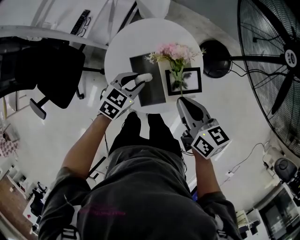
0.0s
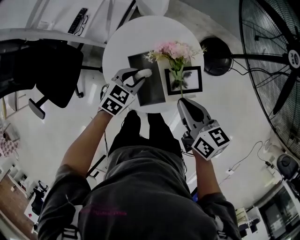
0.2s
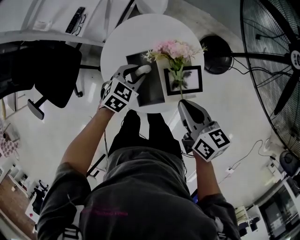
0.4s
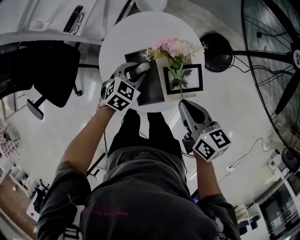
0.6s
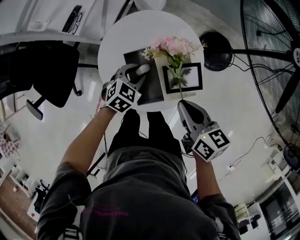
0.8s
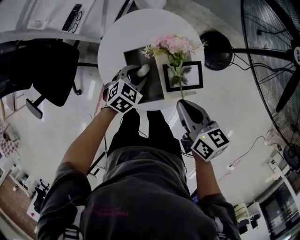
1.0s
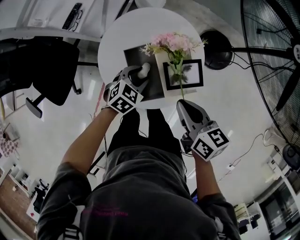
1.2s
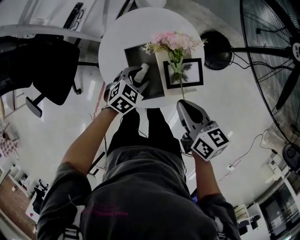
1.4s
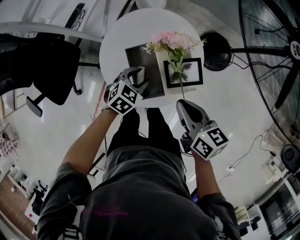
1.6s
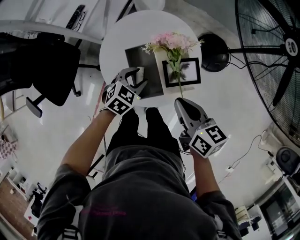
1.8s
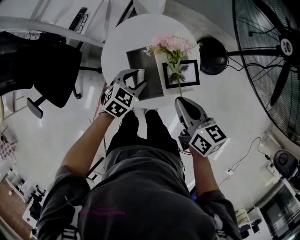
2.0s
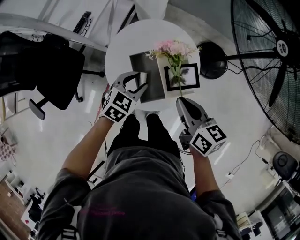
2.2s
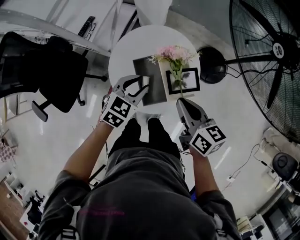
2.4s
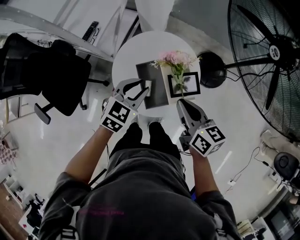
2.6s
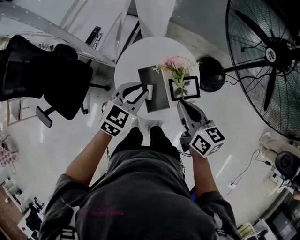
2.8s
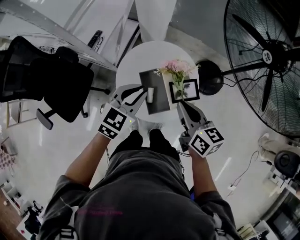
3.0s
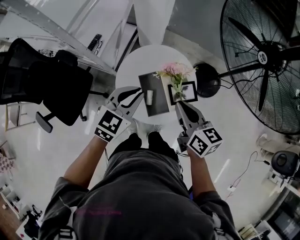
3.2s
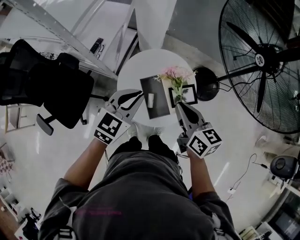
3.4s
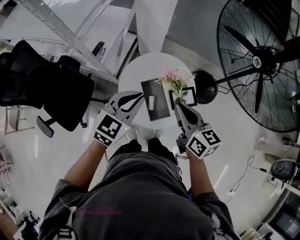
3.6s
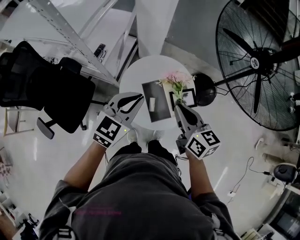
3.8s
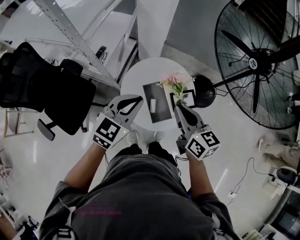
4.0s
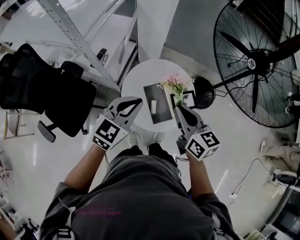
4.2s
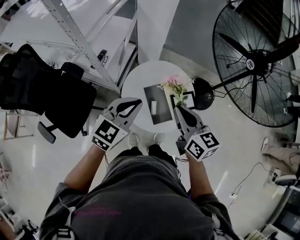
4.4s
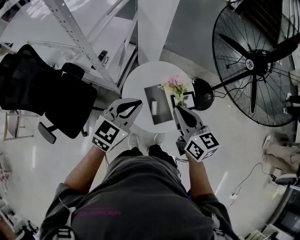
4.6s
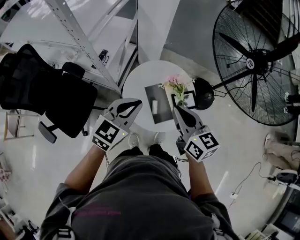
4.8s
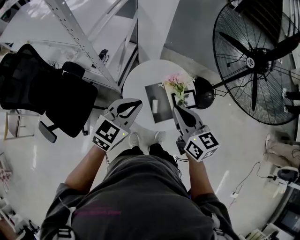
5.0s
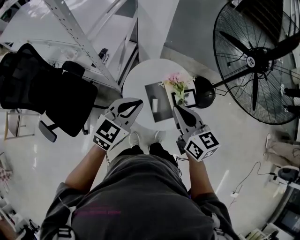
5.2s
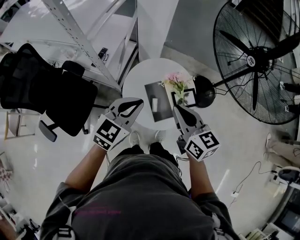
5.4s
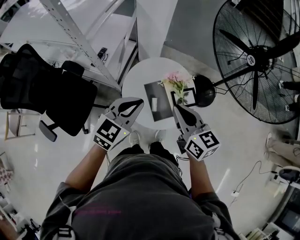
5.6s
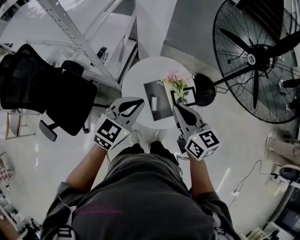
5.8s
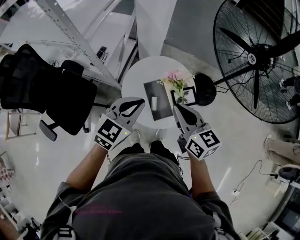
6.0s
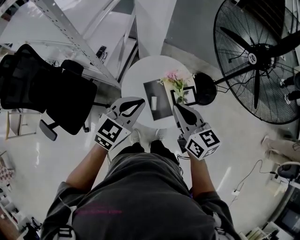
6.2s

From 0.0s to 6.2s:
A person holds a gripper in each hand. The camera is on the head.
From 0.0s to 1.6s: The left gripper is displaced downward by about 5 cm; the right gripper ends up some 5 cm from where it was.
From 1.6s to 3.2s: The left gripper goes roughly 25 cm upward, swivels roughly 30 degrees, and closes up. Meanwhile the right gripper travels upward by about 10 cm.
From 3.2s to 4.6s: The left gripper is displaced upward by some 5 cm. The right gripper heads upward and to the left, covering about 10 cm.
From 4.6s to 6.2s: There are only small adjustments of the grippers.

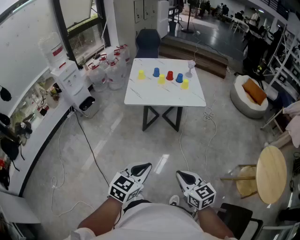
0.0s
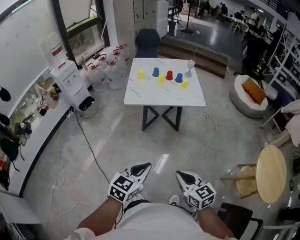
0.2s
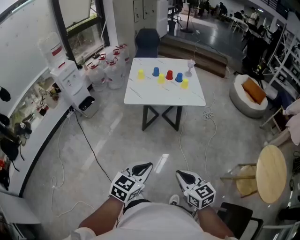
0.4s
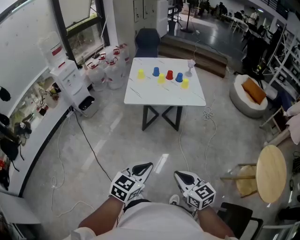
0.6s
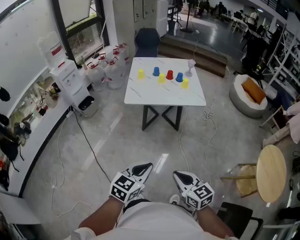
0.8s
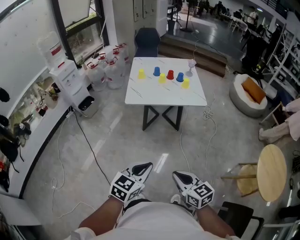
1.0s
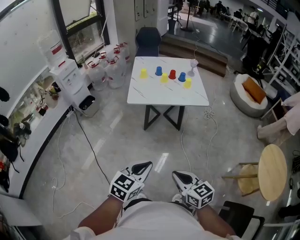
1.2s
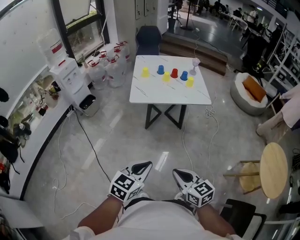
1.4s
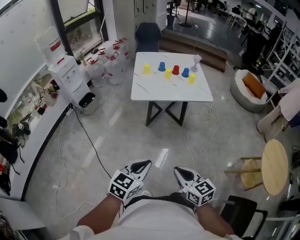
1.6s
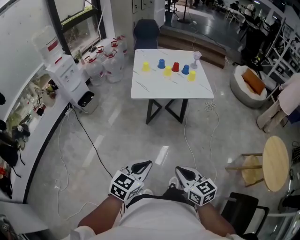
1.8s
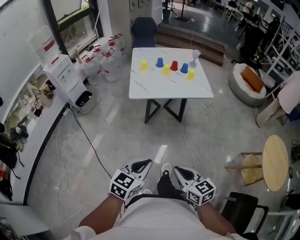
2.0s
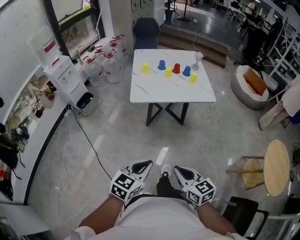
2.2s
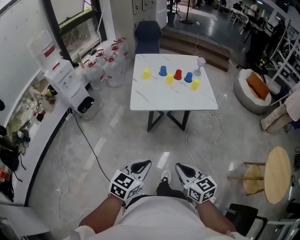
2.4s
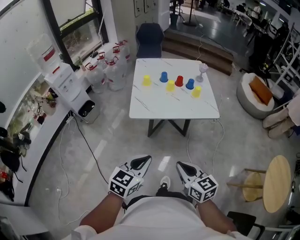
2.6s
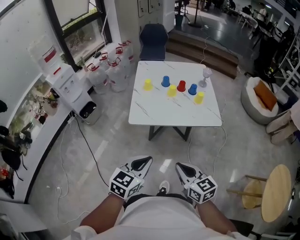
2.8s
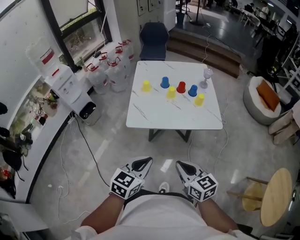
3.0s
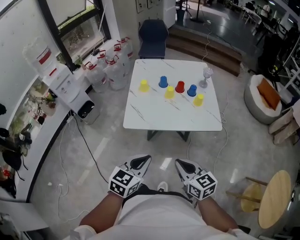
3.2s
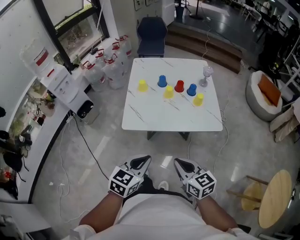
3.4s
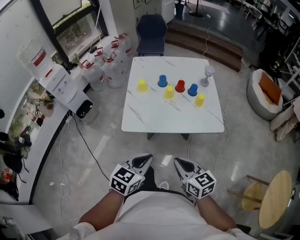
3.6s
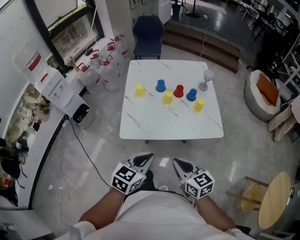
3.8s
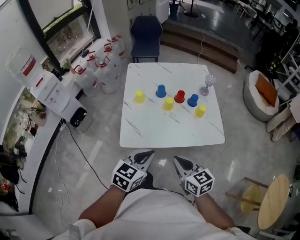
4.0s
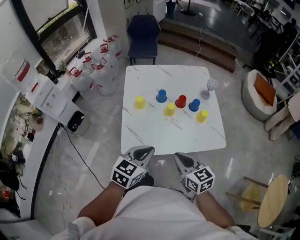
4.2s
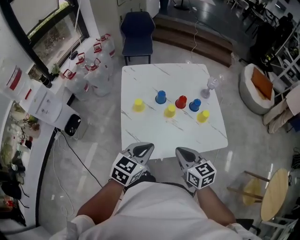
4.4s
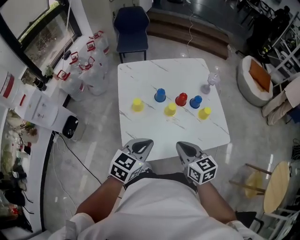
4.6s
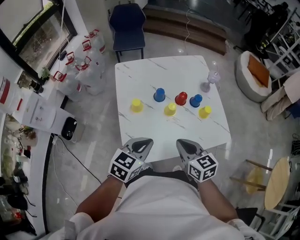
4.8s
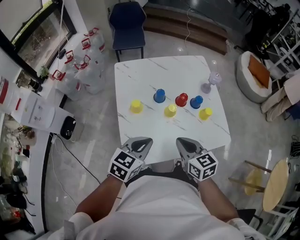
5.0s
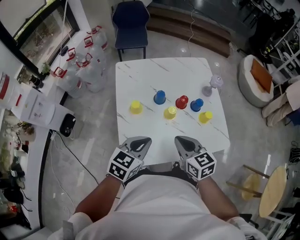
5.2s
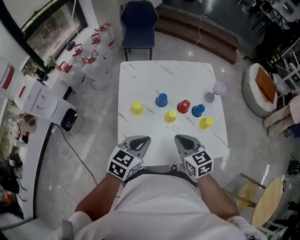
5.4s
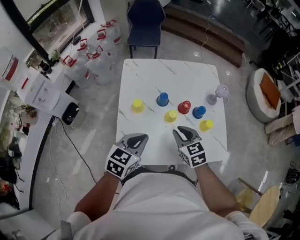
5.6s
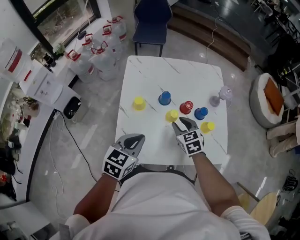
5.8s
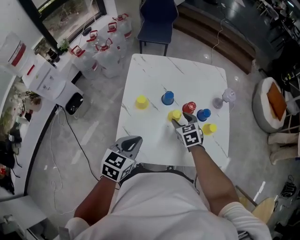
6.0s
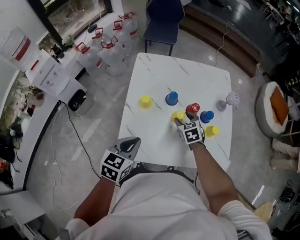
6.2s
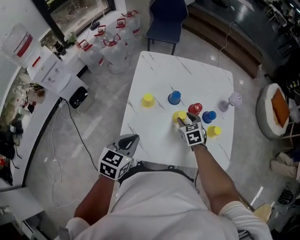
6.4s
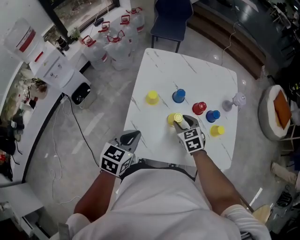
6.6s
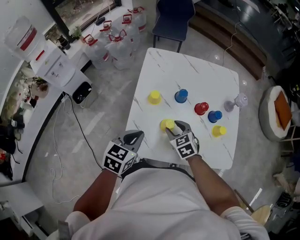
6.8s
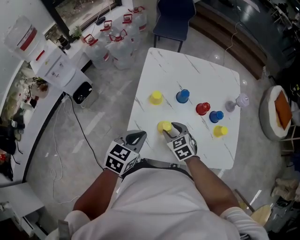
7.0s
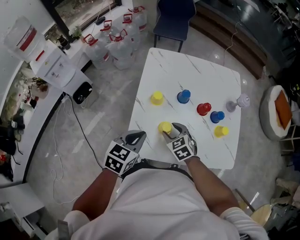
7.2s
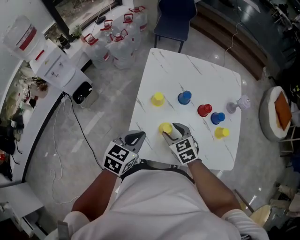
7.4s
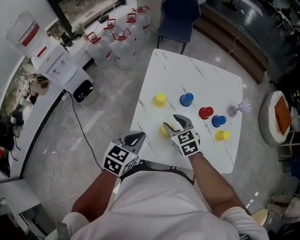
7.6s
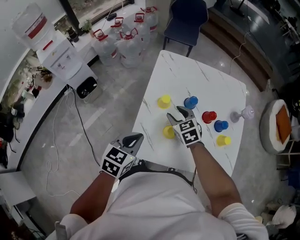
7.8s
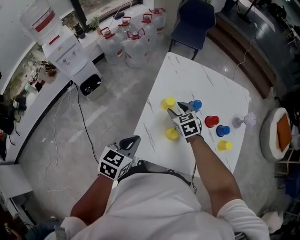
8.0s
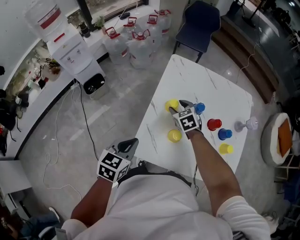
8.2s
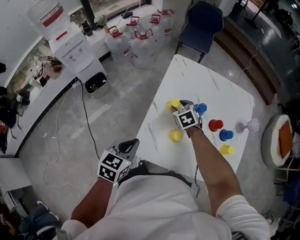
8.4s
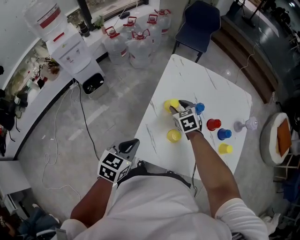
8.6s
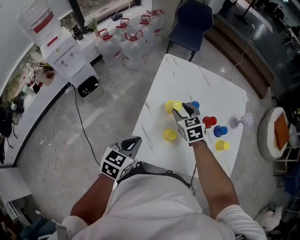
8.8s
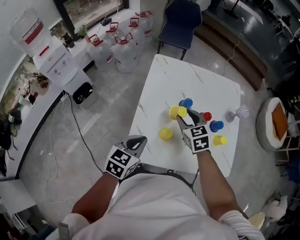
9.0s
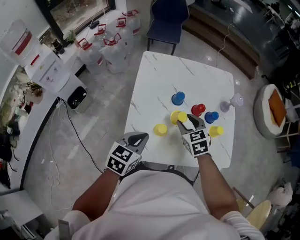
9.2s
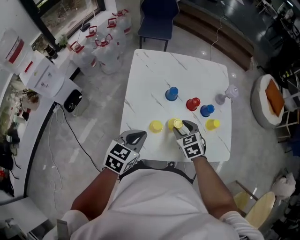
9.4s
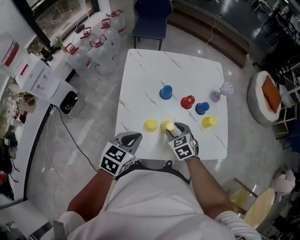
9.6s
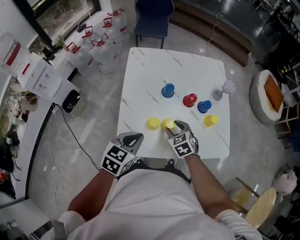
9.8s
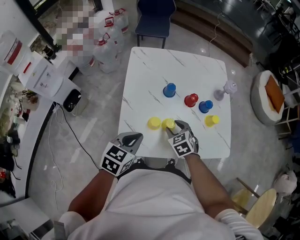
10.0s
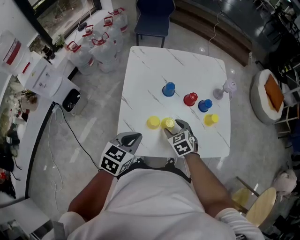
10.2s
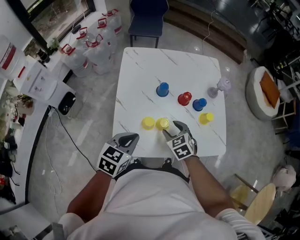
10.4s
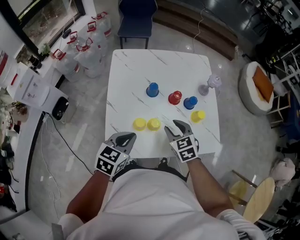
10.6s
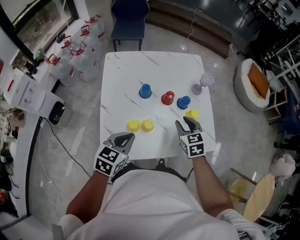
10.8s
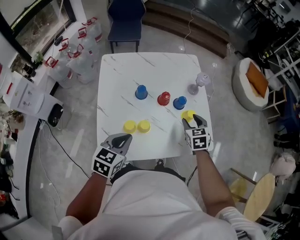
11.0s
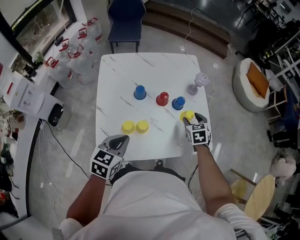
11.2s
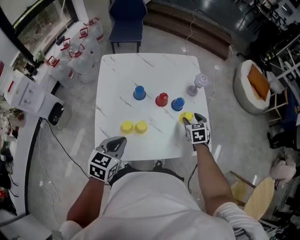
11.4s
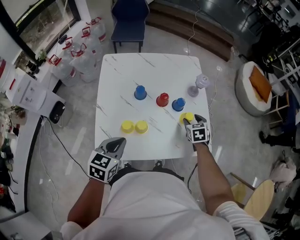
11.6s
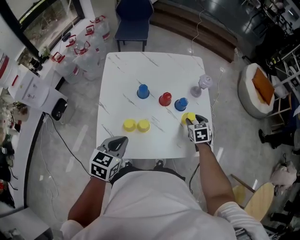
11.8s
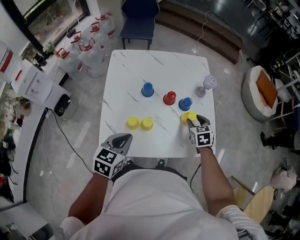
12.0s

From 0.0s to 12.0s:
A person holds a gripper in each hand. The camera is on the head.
From 0.0s to 1.6s: Both grippers move to the left, about 10 cm.
From 1.6s to 3.0s: Both grippers move forward, about 30 cm.
From 3.0s to 4.4s: Both grippers move forward, roughly 30 cm.
From 4.4s to 6.0s: The right gripper travels forward and downward by approximately 25 cm, swivels some 30 degrees, and opens up; the left gripper is displaced forward by roughly 5 cm.
From 6.0s to 7.6s: The right gripper is displaced to the left by approximately 15 cm, while the left gripper travels to the left by about 5 cm.
From 9.0s to 10.4s: The left gripper shifts about 5 cm to the right; the right gripper goes some 15 cm backward, downward and to the right.
From 10.4s to 12.0s: The right gripper is displaced to the right and forward by approximately 25 cm, and changes its angle by some 20 degrees. Meanwhile the left gripper shifts roughly 5 cm to the right.

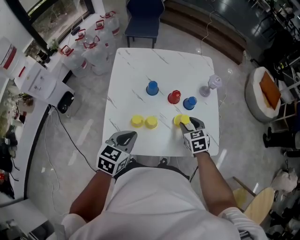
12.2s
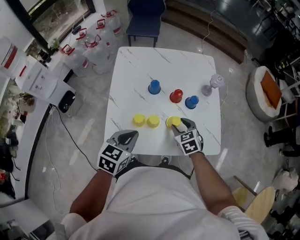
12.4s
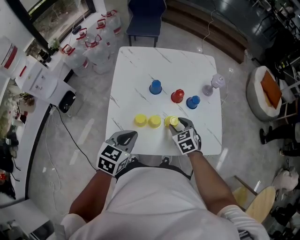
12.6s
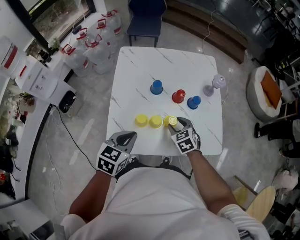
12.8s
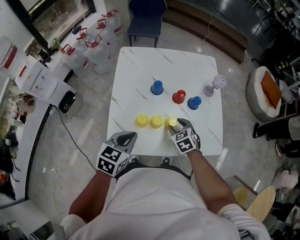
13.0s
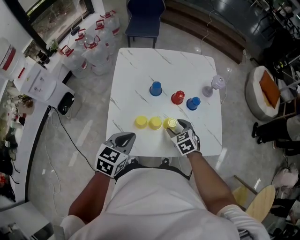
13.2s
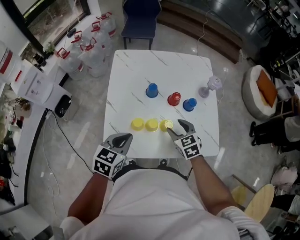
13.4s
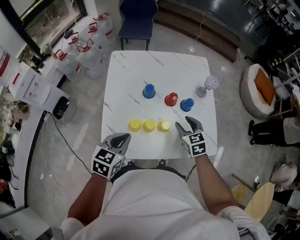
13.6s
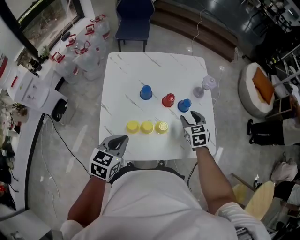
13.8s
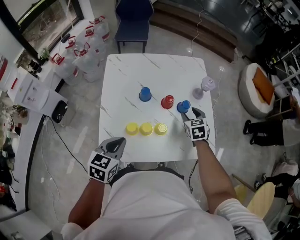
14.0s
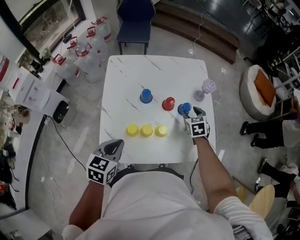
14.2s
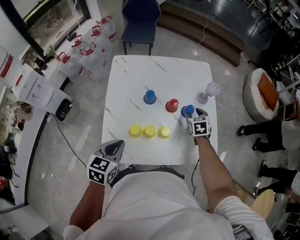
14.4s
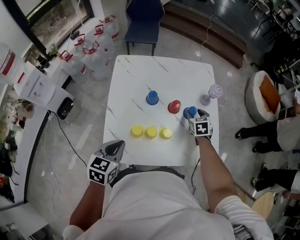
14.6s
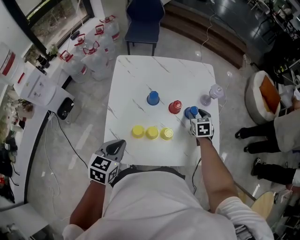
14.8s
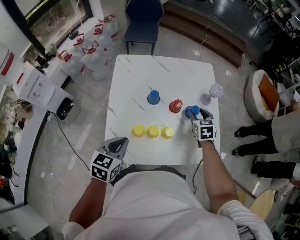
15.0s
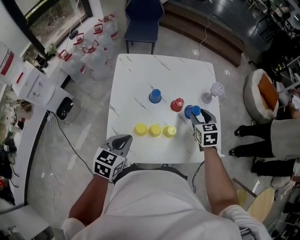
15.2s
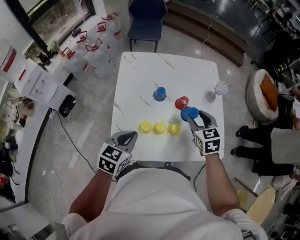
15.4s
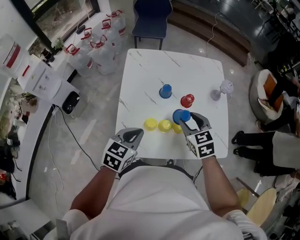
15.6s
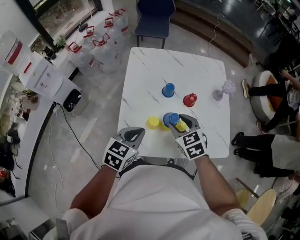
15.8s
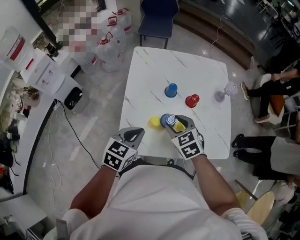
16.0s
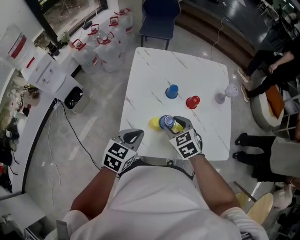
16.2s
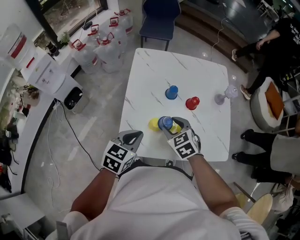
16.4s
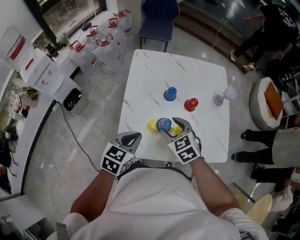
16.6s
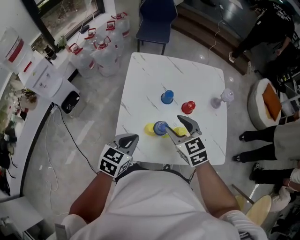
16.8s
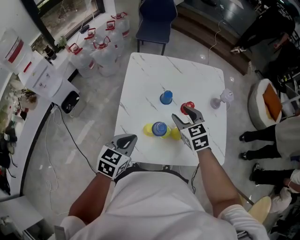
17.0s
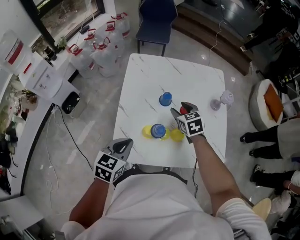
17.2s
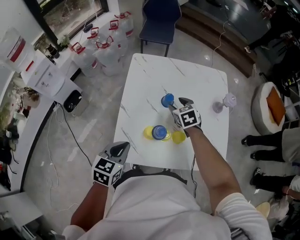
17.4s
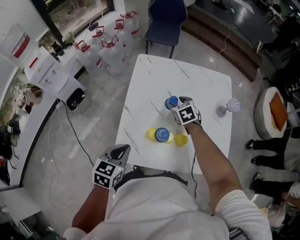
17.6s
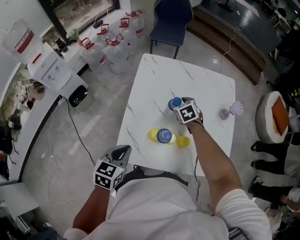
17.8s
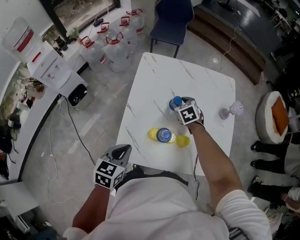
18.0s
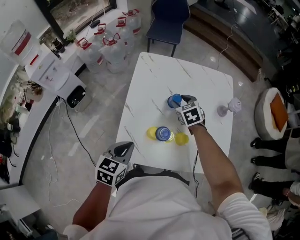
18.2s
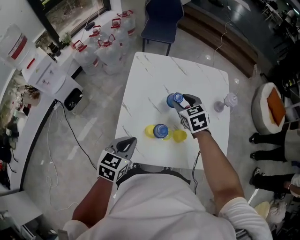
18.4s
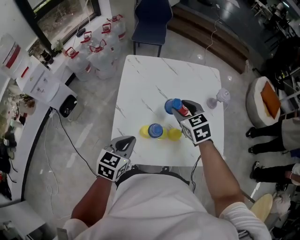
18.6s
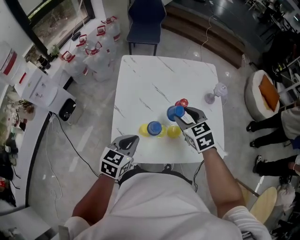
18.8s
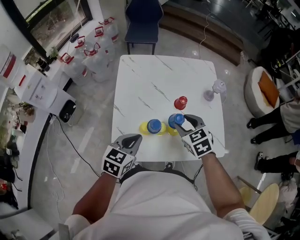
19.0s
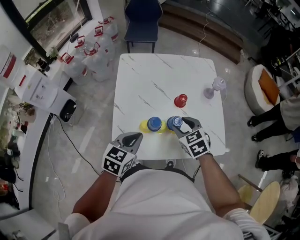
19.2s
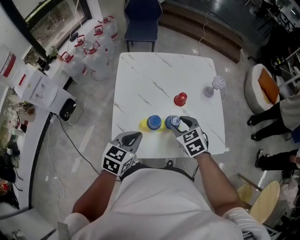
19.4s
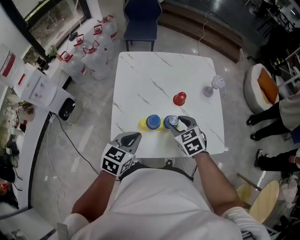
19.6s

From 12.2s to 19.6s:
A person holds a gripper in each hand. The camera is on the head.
From 12.2s to 13.6s: The right gripper moves about 10 cm to the left and comes back.
From 13.6s to 15.2s: The right gripper moves forward, about 5 cm.
From 15.2s to 16.6s: The right gripper shifts some 25 cm to the left and backward, and swivels about 30 degrees.
From 16.6s to 18.2s: The right gripper shifts about 20 cm forward.
From 18.2s to 19.6s: The left gripper heads to the right, covering roughly 5 cm. The right gripper heads backward, covering some 20 cm.
